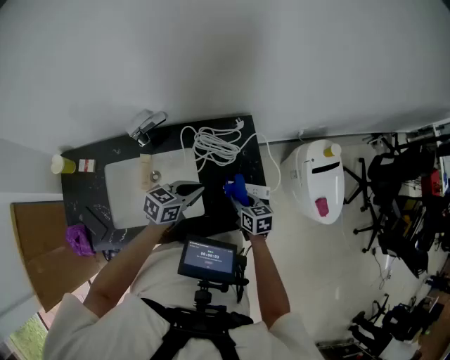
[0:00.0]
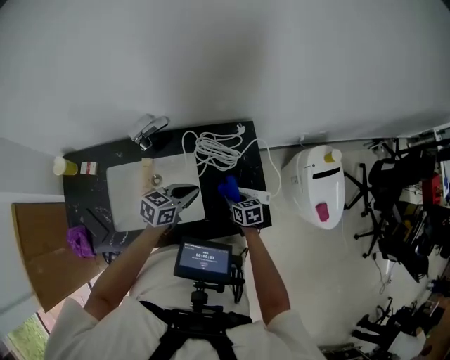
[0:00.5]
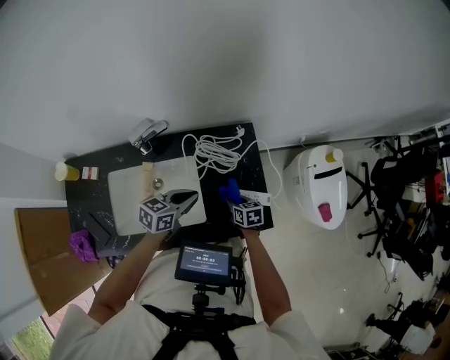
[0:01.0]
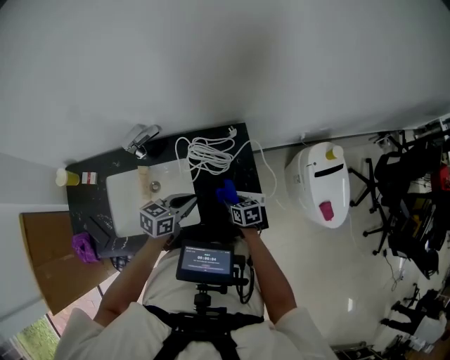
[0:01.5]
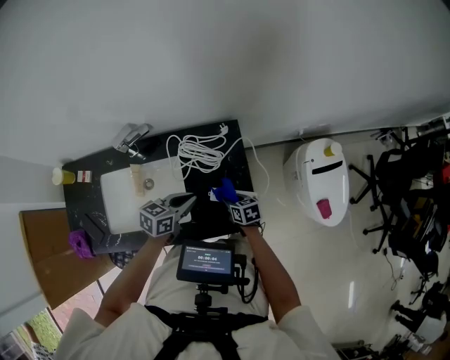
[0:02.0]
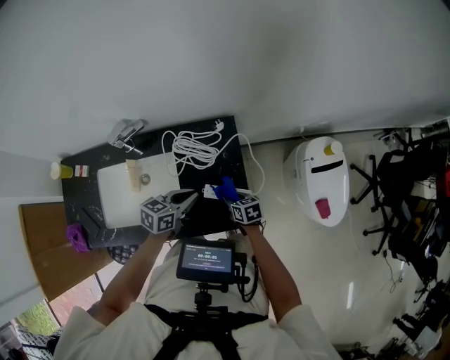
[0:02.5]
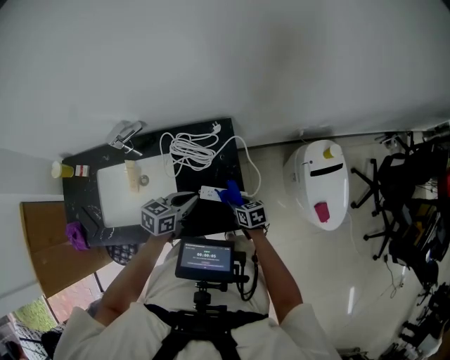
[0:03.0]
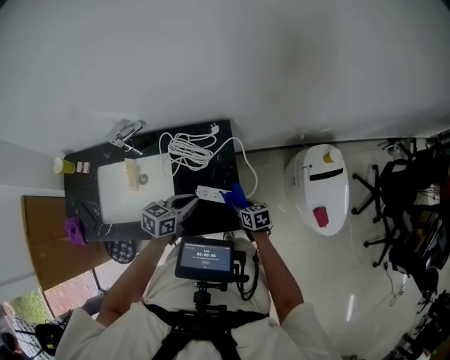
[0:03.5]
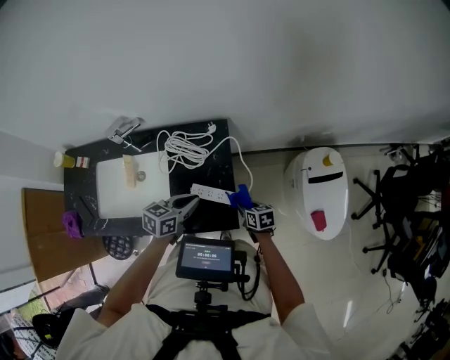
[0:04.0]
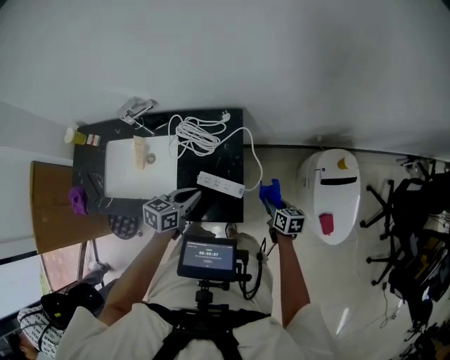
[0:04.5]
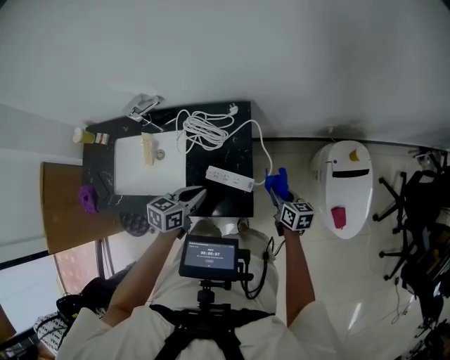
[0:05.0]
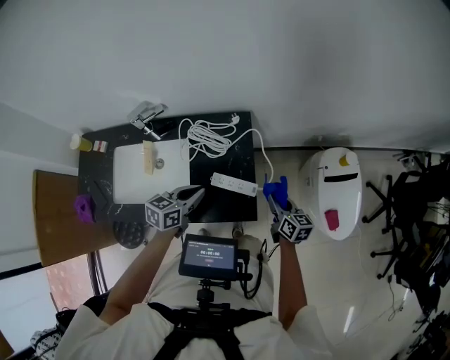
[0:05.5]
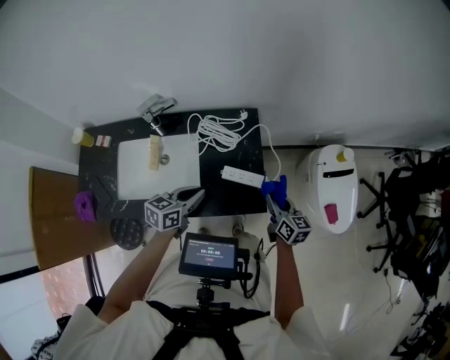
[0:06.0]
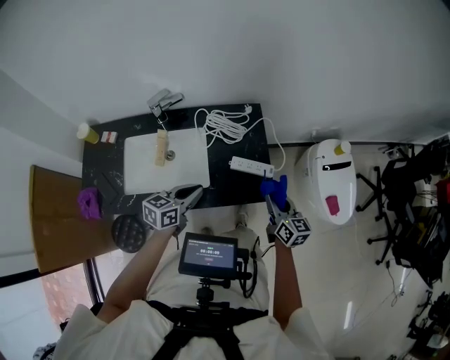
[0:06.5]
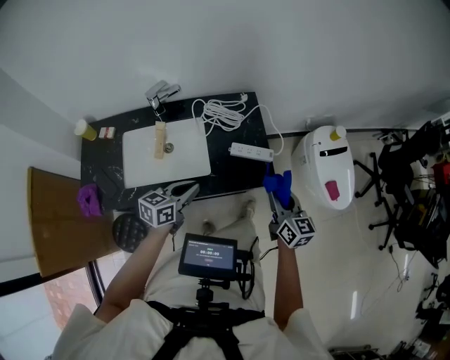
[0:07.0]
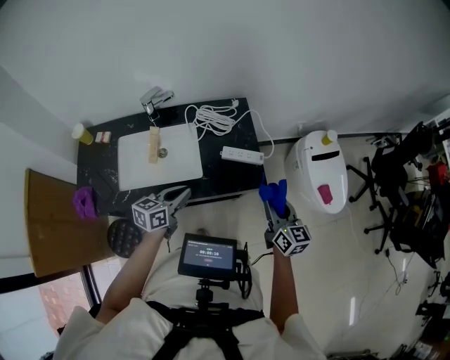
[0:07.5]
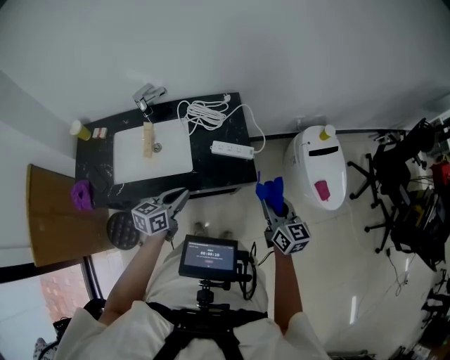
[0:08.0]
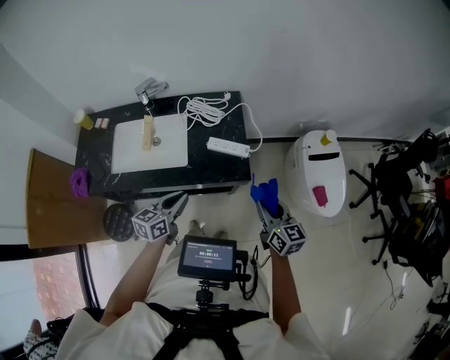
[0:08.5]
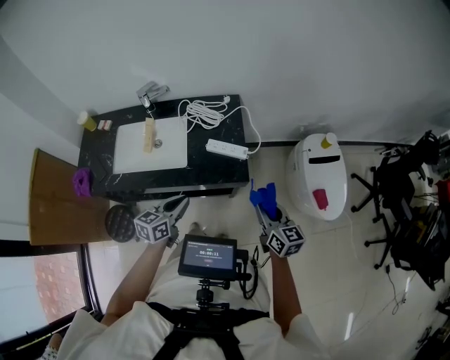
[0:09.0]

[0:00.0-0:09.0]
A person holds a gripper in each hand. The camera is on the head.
0:00.0 to 0:02.0: The left gripper is displaced to the right by roughly 10 cm. Meanwhile the right gripper goes some 10 cm to the right and downward.
0:02.0 to 0:04.5: The right gripper goes approximately 30 cm to the right, while the left gripper goes roughly 15 cm to the right.
0:04.5 to 0:07.0: The right gripper goes approximately 40 cm backward, to the left and upward, and rotates some 40 degrees. Meanwhile the left gripper travels backward and to the left by some 35 cm.
0:07.0 to 0:09.0: Both grippers move to the right and backward, some 20 cm.

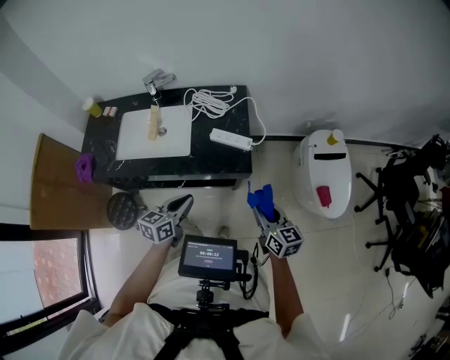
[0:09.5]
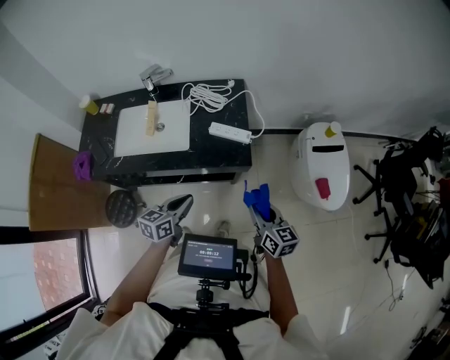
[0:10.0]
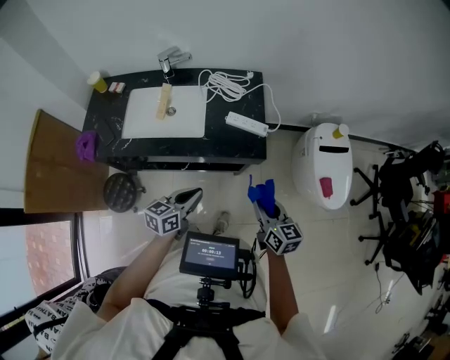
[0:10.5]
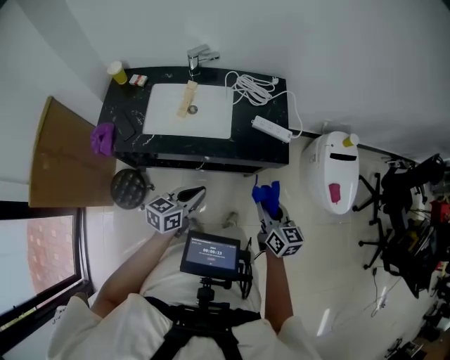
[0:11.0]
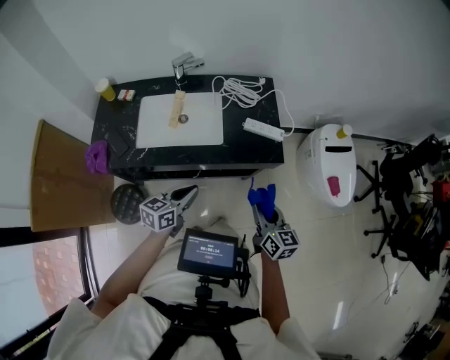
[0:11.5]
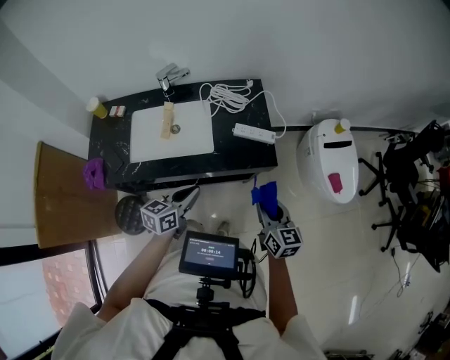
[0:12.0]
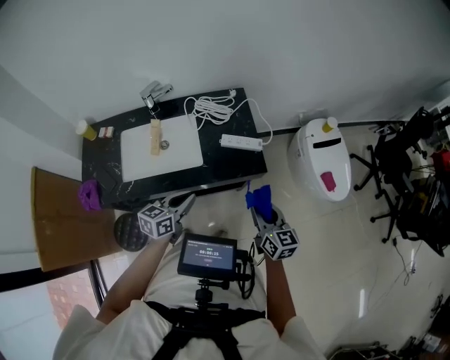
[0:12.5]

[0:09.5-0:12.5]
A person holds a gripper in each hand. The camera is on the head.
0:09.5 to 0:11.0: The two grippers go roughly 25 cm to the left.
0:11.0 to 0:12.5: The left gripper travels forward by roughly 15 cm; the right gripper moves forward and to the right, approximately 10 cm.

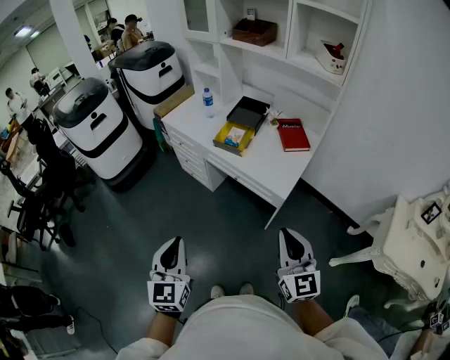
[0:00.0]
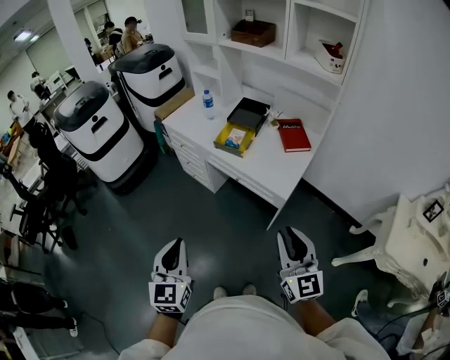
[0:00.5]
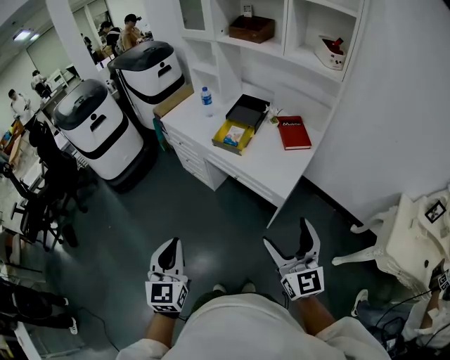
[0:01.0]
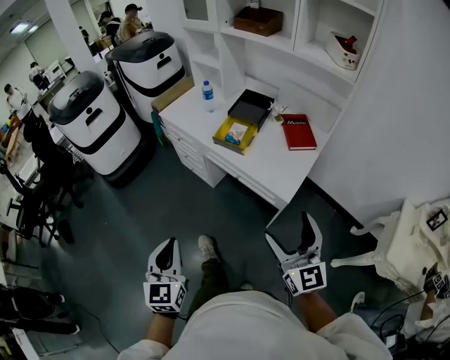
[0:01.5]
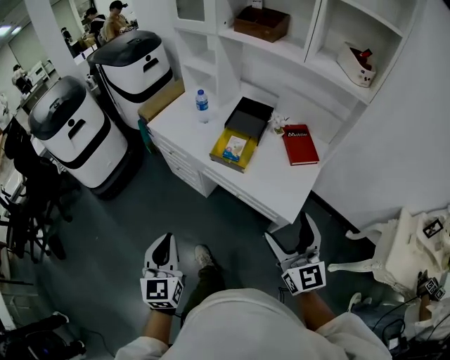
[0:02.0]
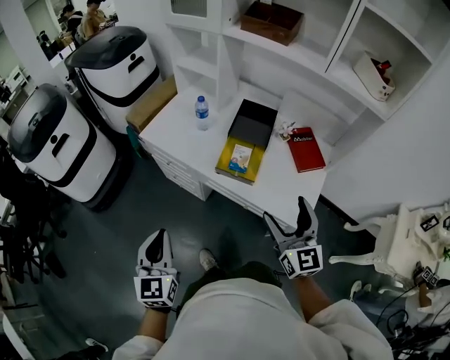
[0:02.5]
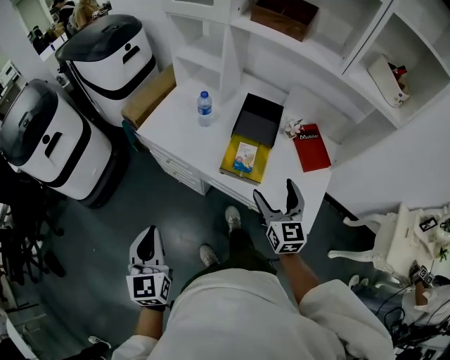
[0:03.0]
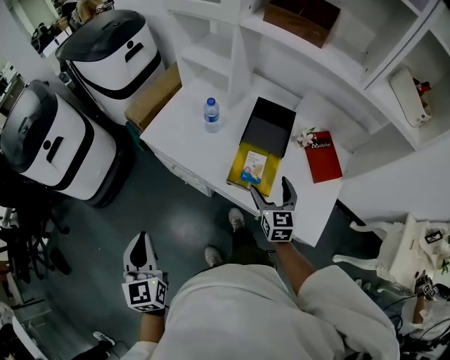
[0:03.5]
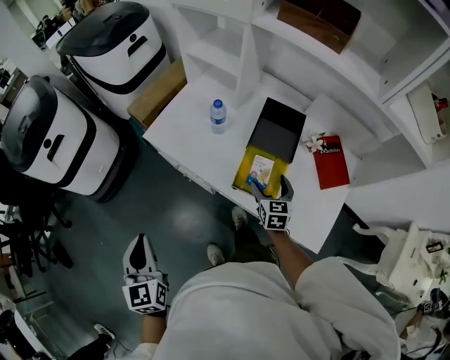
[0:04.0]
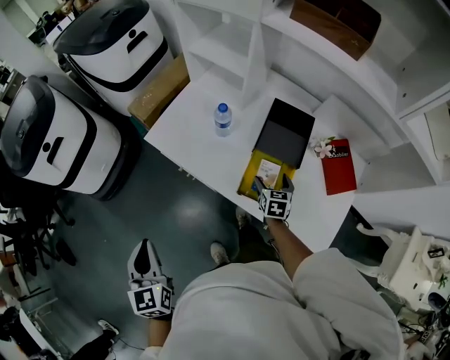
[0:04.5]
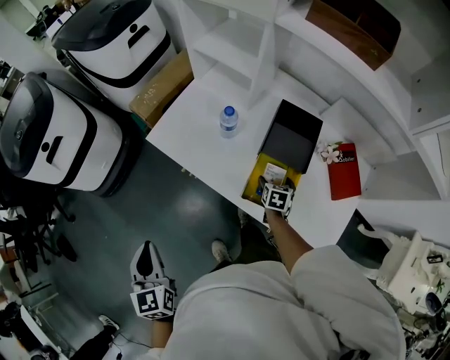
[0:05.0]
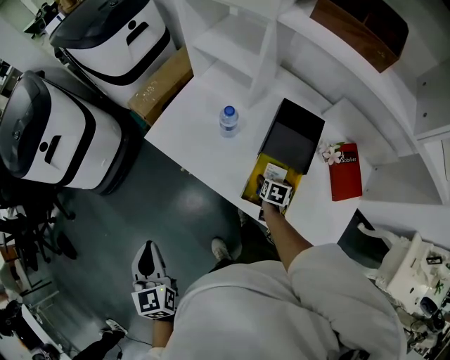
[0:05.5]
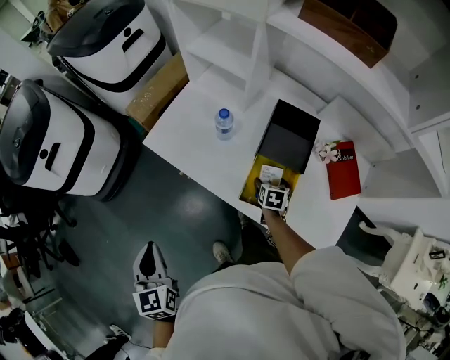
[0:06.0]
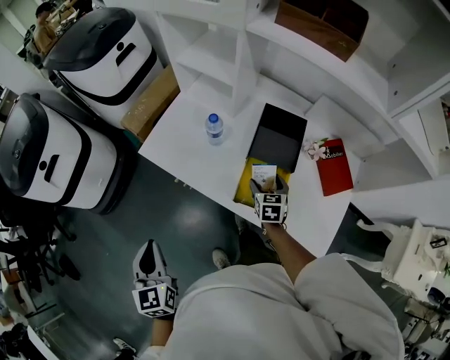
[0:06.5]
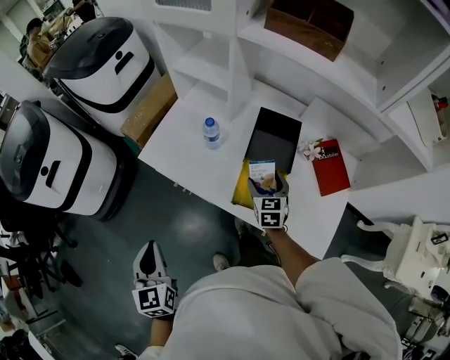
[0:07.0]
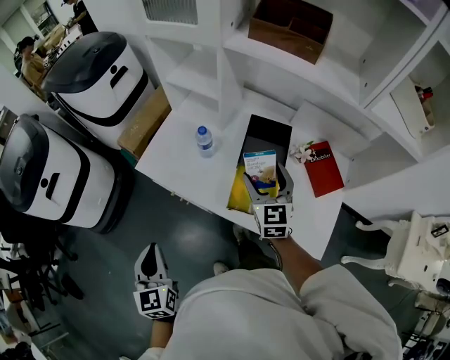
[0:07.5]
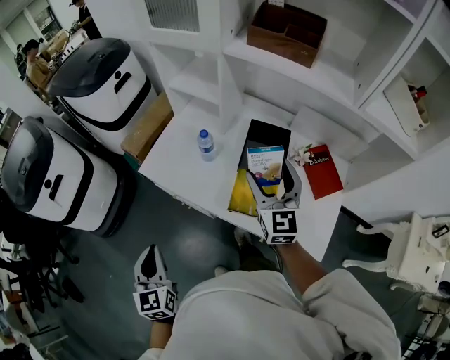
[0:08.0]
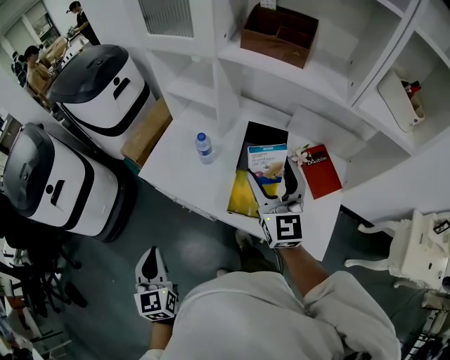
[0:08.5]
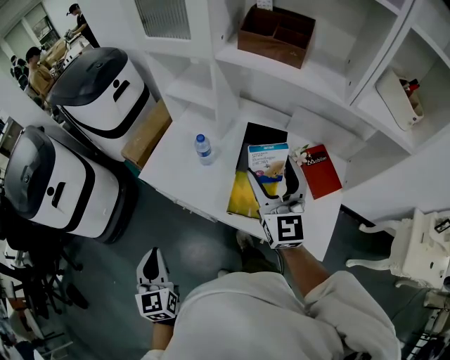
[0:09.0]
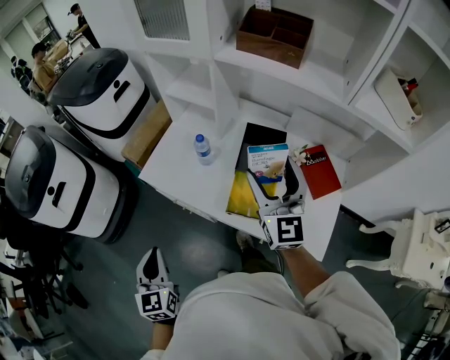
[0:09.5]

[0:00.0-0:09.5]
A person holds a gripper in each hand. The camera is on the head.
0:00.0 to 0:02.0: Both grippers move forward, roughly 20 cm. The right gripper opens its fingers.
0:02.0 to 0:04.0: The left gripper goes about 35 cm forward and to the left. Meanwhile the right gripper travels forward and downward by some 50 cm, and angles its fingers downward, by some 30 degrees.
0:04.0 to 0:05.5: The right gripper travels downward and forward by some 15 cm, and turns by about 40 degrees. Meanwhile the left gripper goes some 5 cm forward.
0:05.5 to 0:07.5: The right gripper moves upward, some 30 cm, and tilts its fingers roughly 50 degrees upward; the left gripper ends up about 5 cm from where it was.
0:07.5 to 0:09.5: The right gripper travels upward by about 15 cm, and swivels roughly 20 degrees.

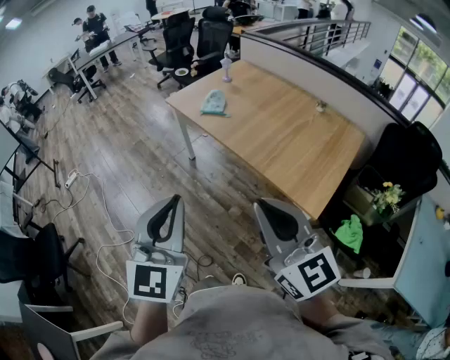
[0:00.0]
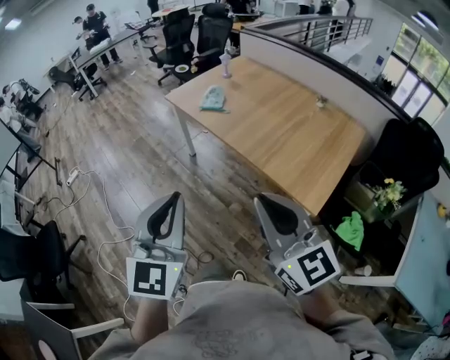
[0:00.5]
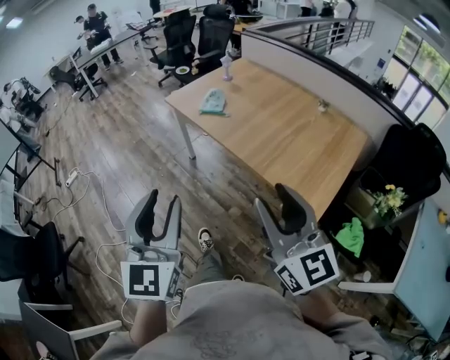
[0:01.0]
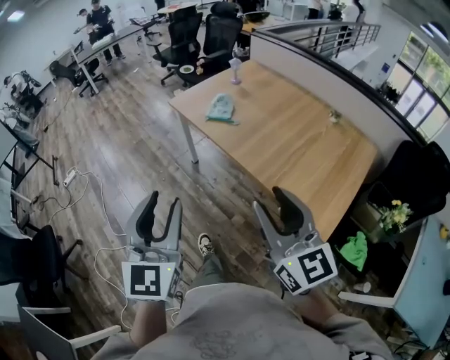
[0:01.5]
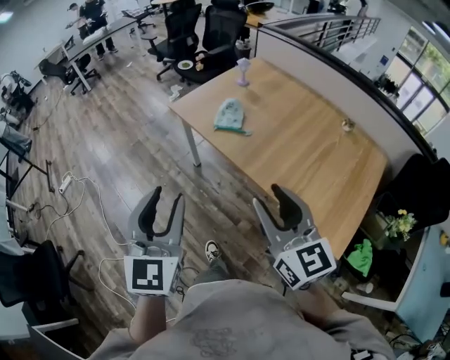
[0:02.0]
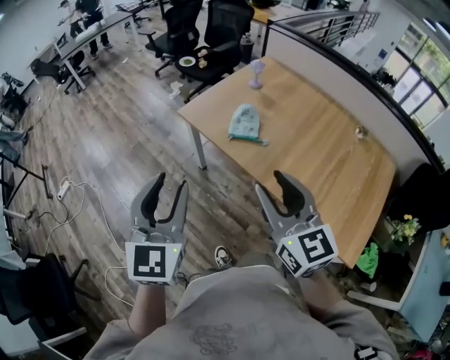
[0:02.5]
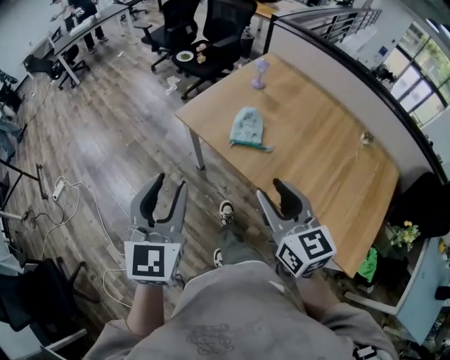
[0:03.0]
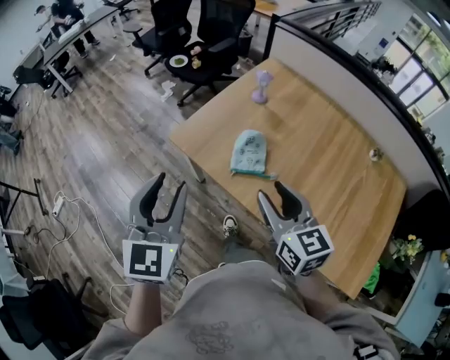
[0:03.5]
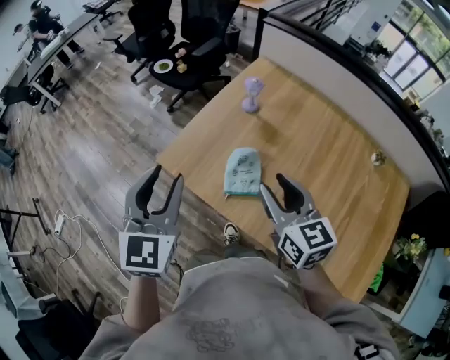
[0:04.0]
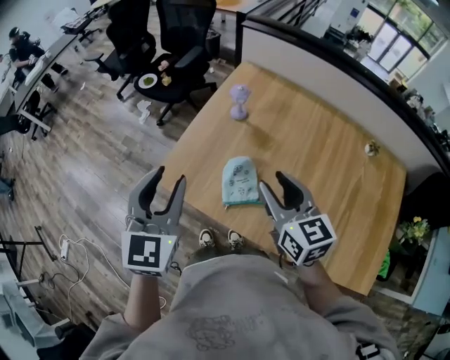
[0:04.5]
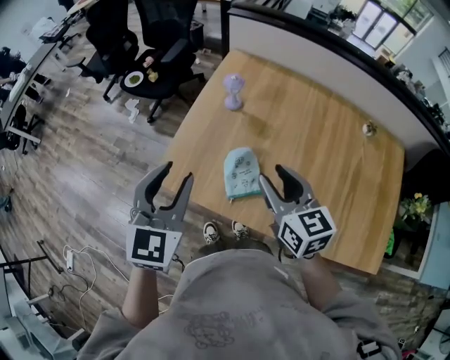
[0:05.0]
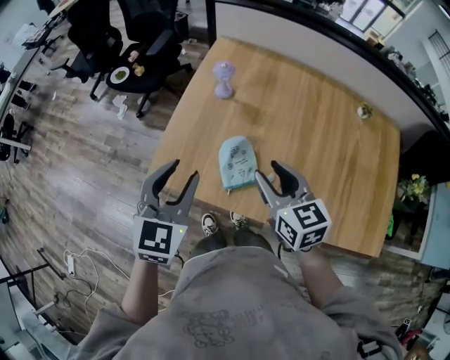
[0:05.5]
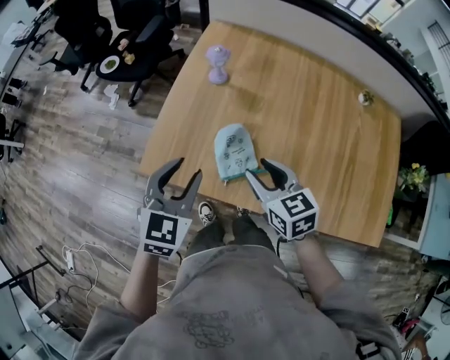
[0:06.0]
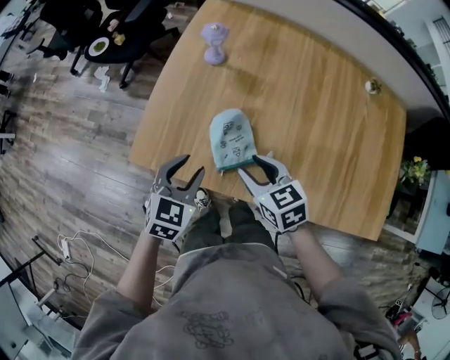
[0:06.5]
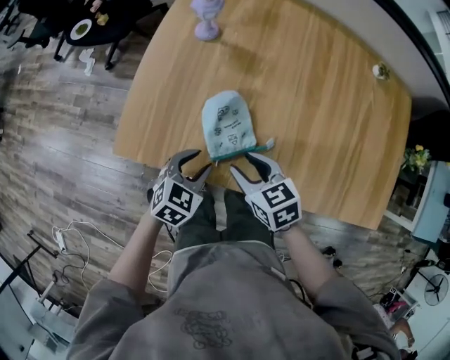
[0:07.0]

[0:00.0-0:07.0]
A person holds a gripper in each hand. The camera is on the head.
0:00.0 to 0:02.0: Both grippers move forward, about 30 cm. The right gripper opens. Meanwhile the left gripper opens.
0:02.0 to 0:03.5: Both grippers move forward, approximately 40 cm.
0:03.5 to 0:05.0: The grippers both shift forward by about 20 cm. The left gripper turns by about 20 degrees.
0:05.0 to 0:07.0: Both grippers travel together downward, approximately 30 cm. The left gripper swivels approximately 40 degrees. The right gripper changes its angle by about 30 degrees.
